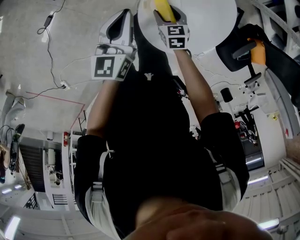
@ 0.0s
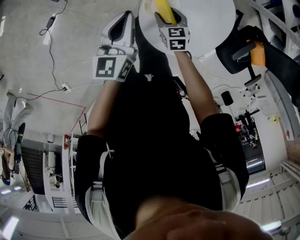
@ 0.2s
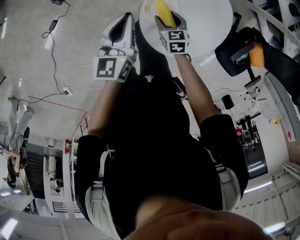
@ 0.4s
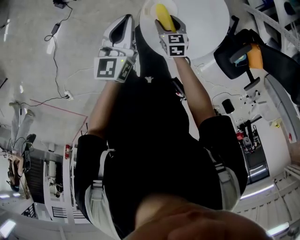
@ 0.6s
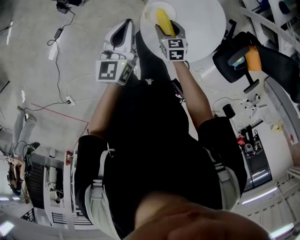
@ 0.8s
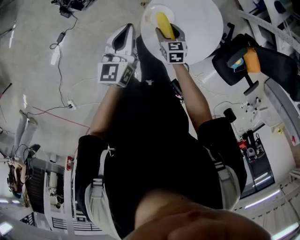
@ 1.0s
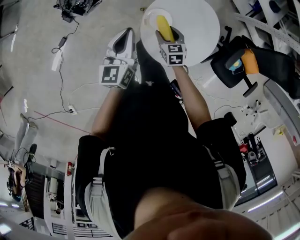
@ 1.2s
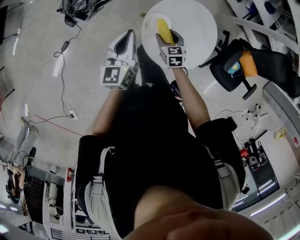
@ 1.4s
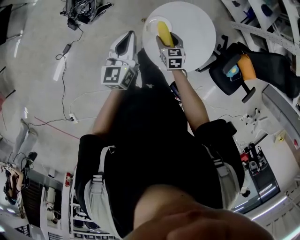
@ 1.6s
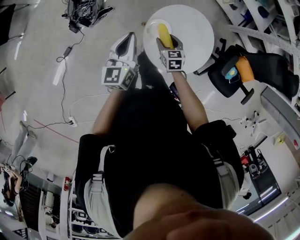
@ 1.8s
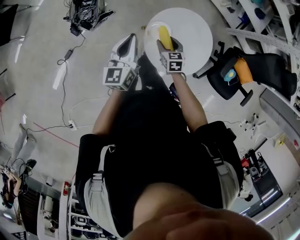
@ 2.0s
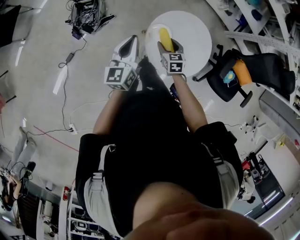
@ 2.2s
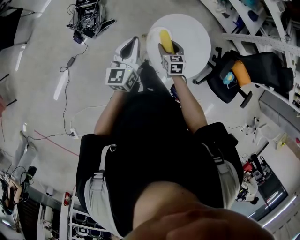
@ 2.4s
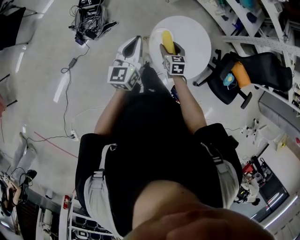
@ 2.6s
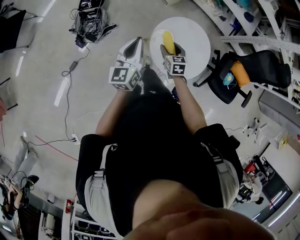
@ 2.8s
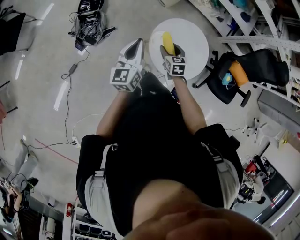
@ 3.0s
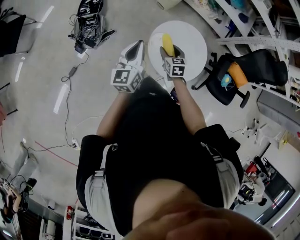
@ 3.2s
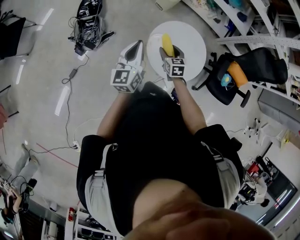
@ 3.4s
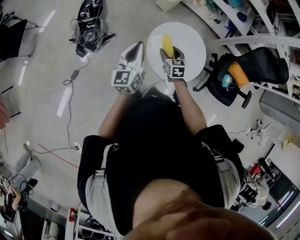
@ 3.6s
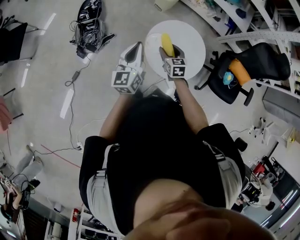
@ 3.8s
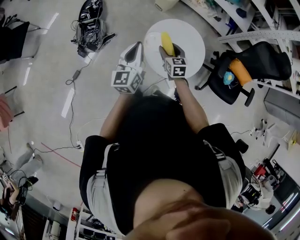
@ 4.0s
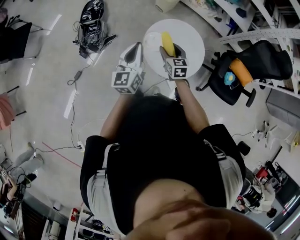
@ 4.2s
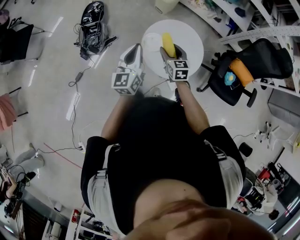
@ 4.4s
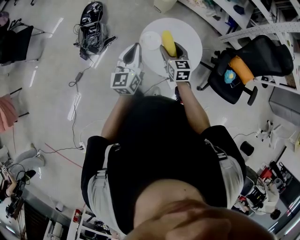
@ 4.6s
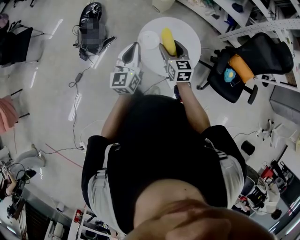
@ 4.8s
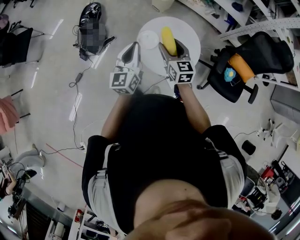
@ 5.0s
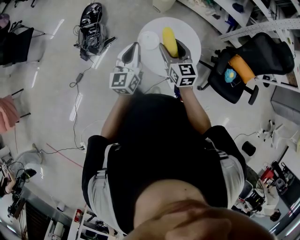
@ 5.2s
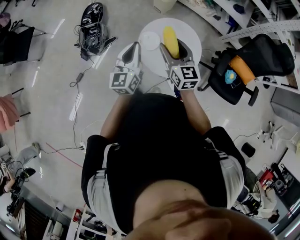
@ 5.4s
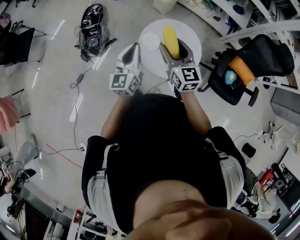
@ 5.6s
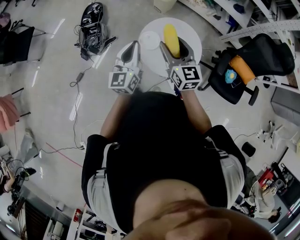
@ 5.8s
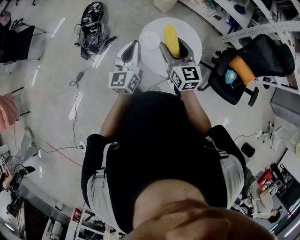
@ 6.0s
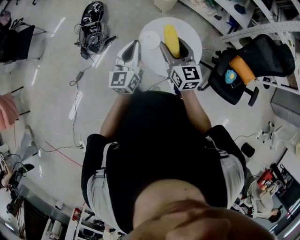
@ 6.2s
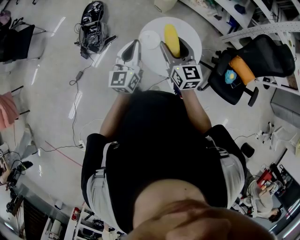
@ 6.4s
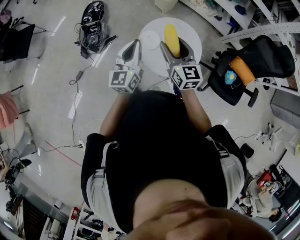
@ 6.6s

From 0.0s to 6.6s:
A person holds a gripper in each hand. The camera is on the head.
From 0.0s to 1.6s: The two grippers go about 15 cm upward.
From 1.6s to 3.2s: The left gripper goes some 10 cm upward and backward, while the right gripper heads upward, covering approximately 10 cm.
From 3.2s to 5.0s: The left gripper is displaced to the right and backward by roughly 15 cm. Meanwhile the right gripper is displaced upward, to the right and backward by roughly 20 cm, and rotates roughly 20 degrees.
From 5.0s to 6.6s: The right gripper heads upward, covering about 5 cm.

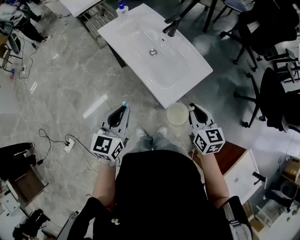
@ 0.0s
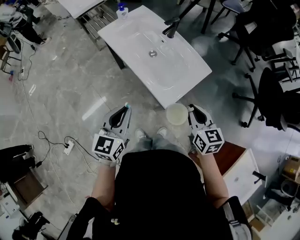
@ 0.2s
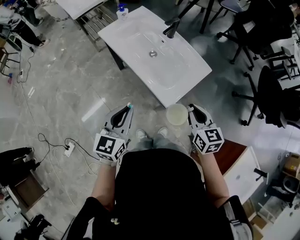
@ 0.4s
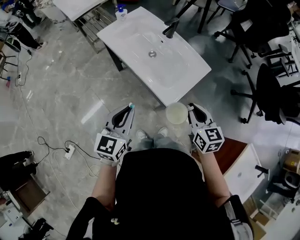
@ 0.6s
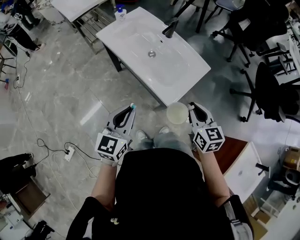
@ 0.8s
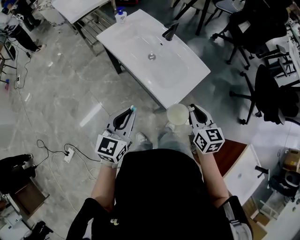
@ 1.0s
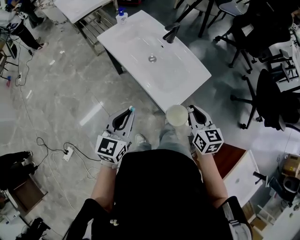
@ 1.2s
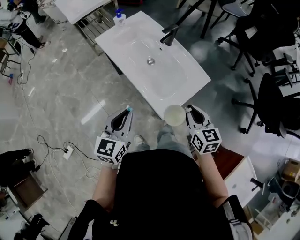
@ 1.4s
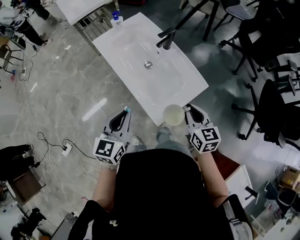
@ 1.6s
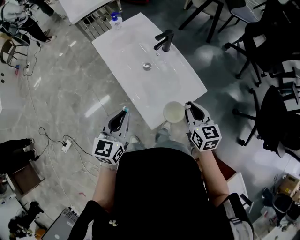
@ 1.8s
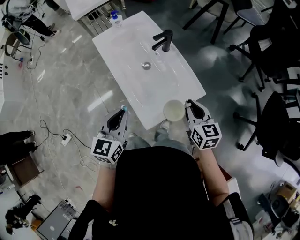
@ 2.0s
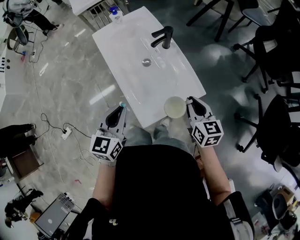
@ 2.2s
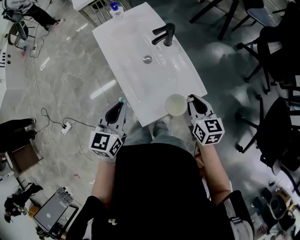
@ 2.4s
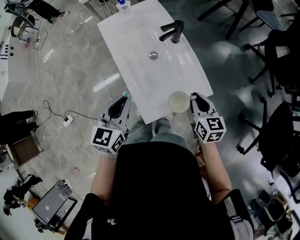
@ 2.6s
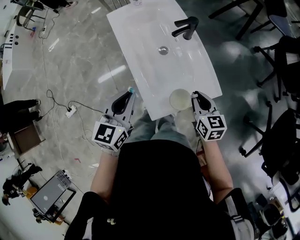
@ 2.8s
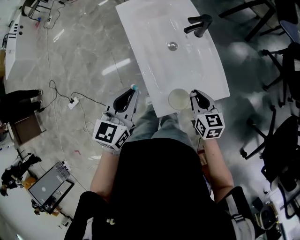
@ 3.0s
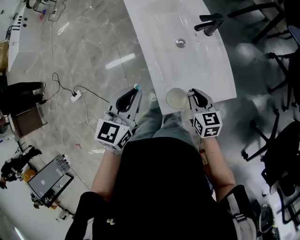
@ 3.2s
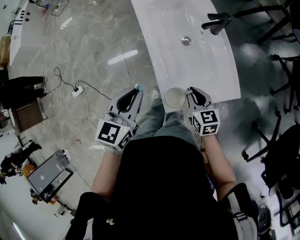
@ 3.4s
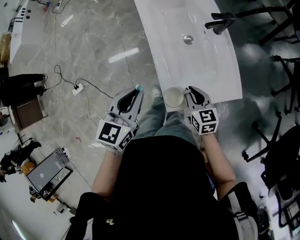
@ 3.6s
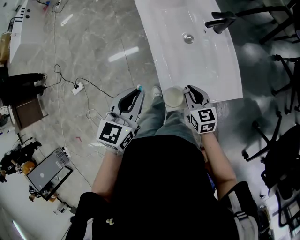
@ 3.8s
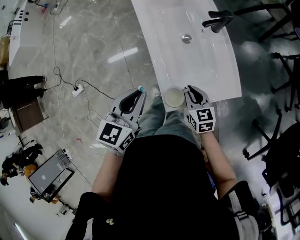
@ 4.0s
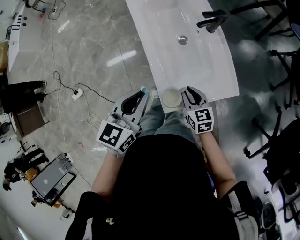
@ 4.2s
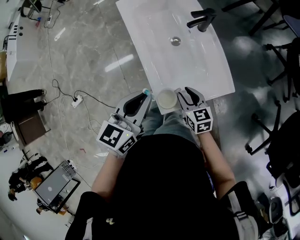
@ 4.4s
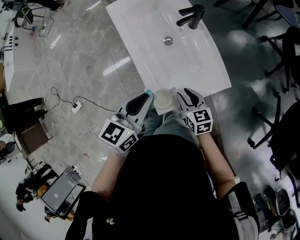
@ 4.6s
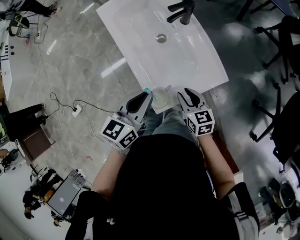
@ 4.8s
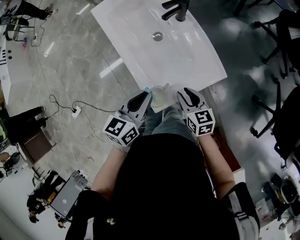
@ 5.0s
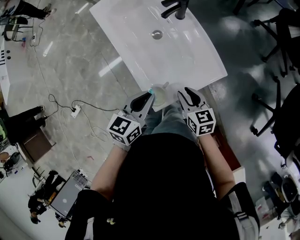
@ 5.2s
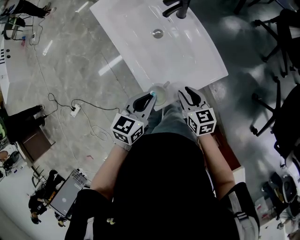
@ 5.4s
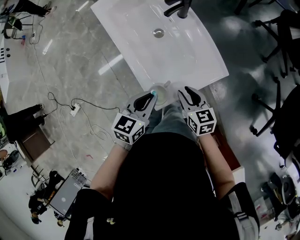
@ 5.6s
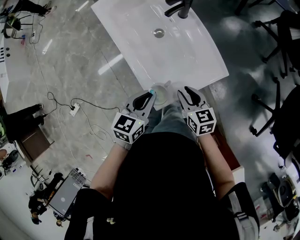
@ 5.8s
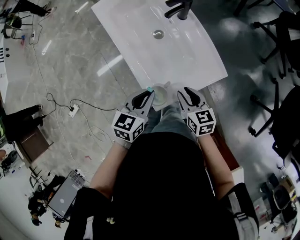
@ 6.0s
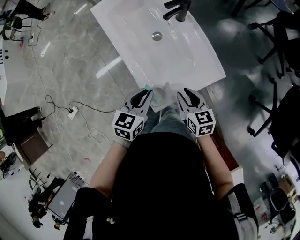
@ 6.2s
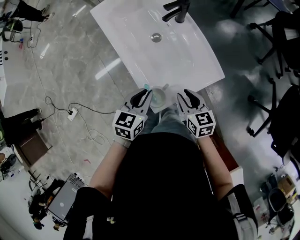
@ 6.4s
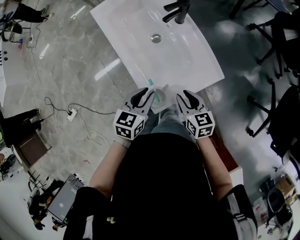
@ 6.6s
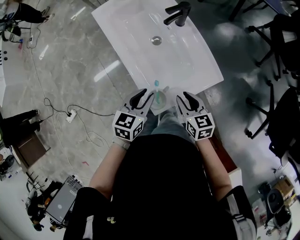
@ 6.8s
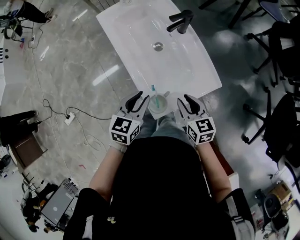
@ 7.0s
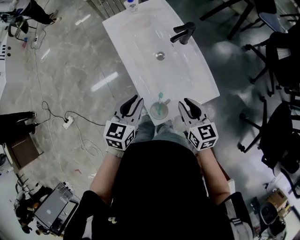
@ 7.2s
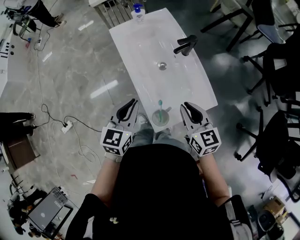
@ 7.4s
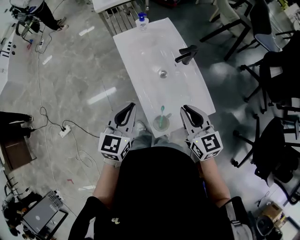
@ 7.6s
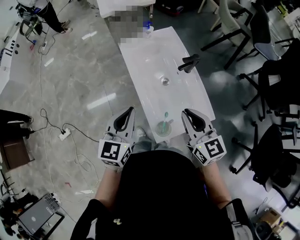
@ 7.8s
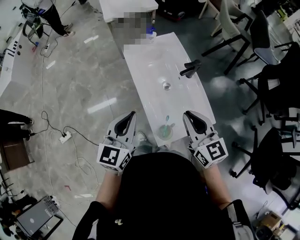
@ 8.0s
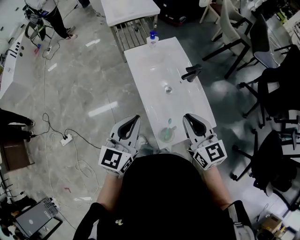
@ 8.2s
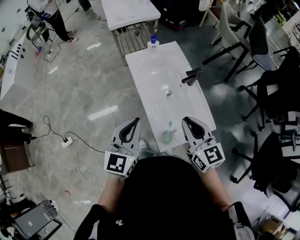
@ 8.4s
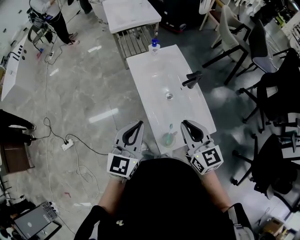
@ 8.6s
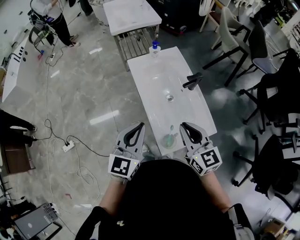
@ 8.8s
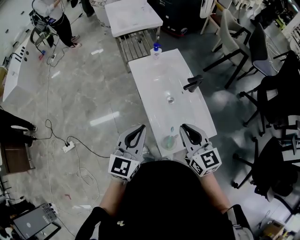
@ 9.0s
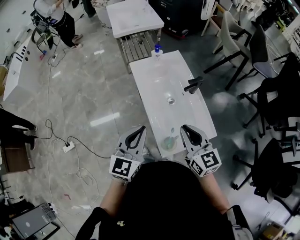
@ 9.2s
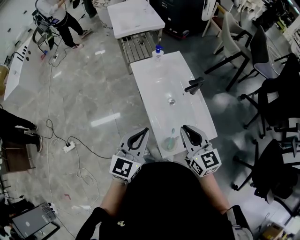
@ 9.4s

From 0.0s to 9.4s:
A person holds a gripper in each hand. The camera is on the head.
From 0.0s to 1.6s: Both grippers move forward, approximately 10 cm.
From 1.6s to 3.2s: The right gripper moves downward and forward, roughly 15 cm, and changes its angle by roughly 30 degrees.
From 3.2s to 4.8s: Both grippers travel together forward, roughly 15 cm. The right gripper opens its fingers, while the left gripper turns by roughly 20 degrees.
From 4.8s to 6.2s: The left gripper goes about 10 cm downward.
From 6.2s to 7.8s: The left gripper is displaced upward and to the left by some 20 cm, and rotates about 30 degrees. The right gripper heads upward, covering roughly 25 cm, turns by roughly 30 degrees, and closes its fingers.
From 7.8s to 9.4s: The grippers move only a little.

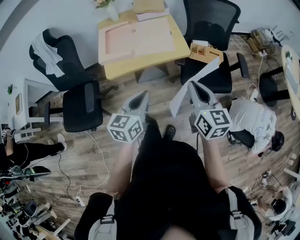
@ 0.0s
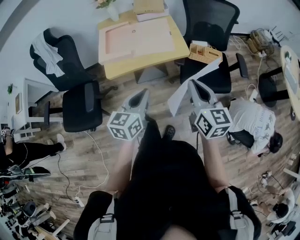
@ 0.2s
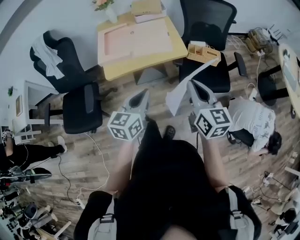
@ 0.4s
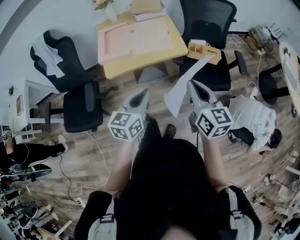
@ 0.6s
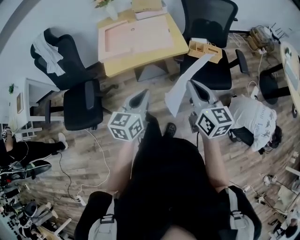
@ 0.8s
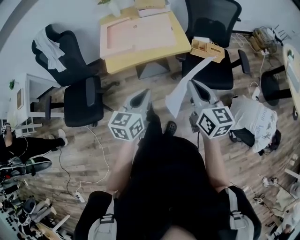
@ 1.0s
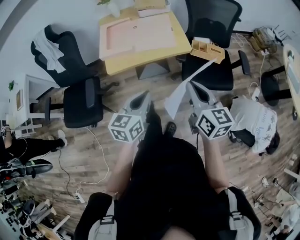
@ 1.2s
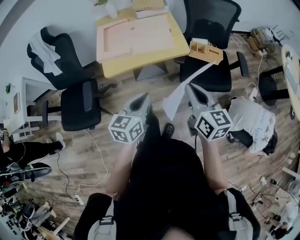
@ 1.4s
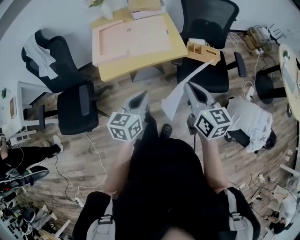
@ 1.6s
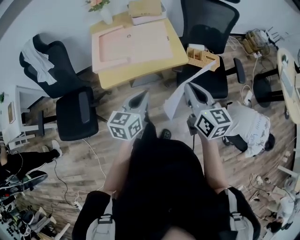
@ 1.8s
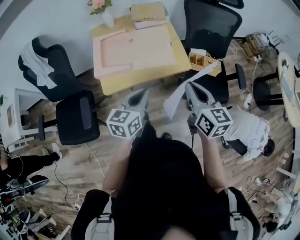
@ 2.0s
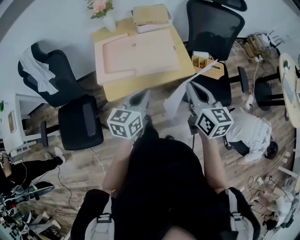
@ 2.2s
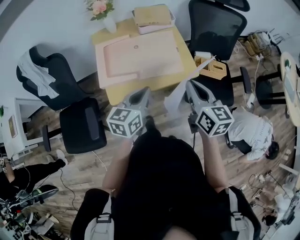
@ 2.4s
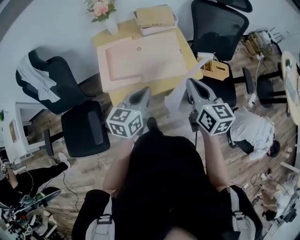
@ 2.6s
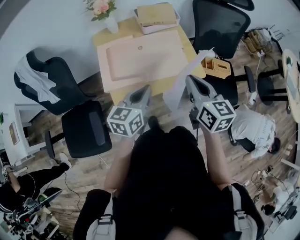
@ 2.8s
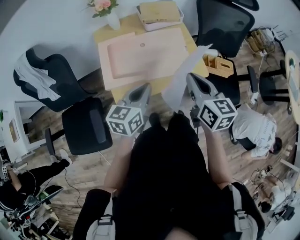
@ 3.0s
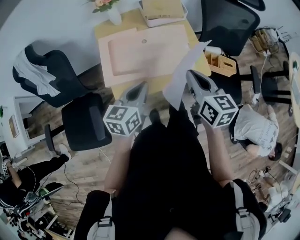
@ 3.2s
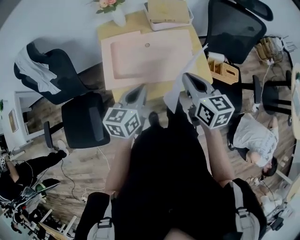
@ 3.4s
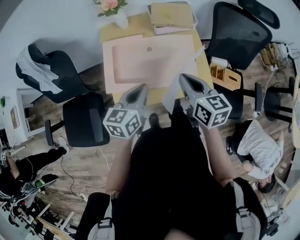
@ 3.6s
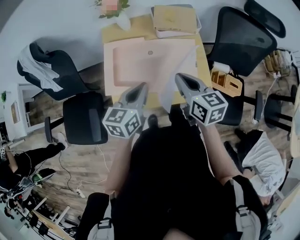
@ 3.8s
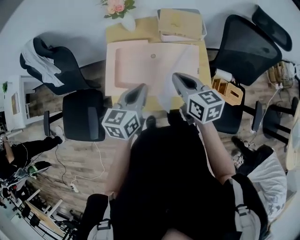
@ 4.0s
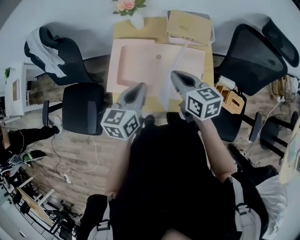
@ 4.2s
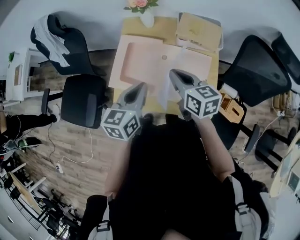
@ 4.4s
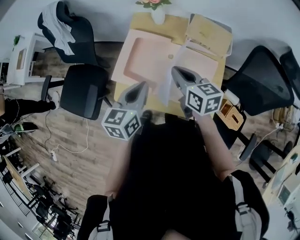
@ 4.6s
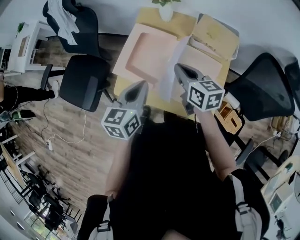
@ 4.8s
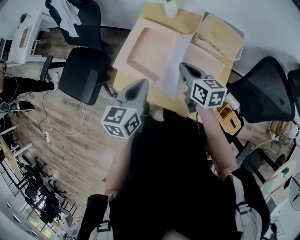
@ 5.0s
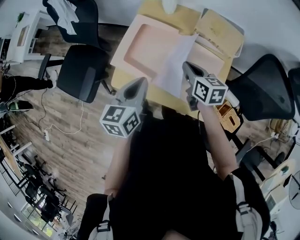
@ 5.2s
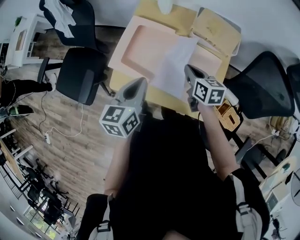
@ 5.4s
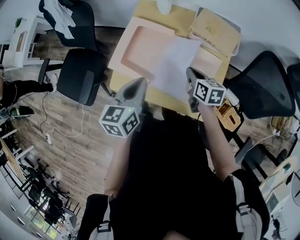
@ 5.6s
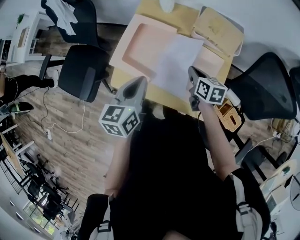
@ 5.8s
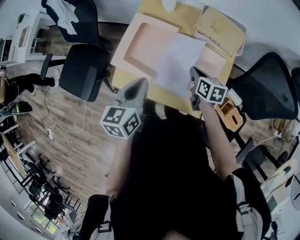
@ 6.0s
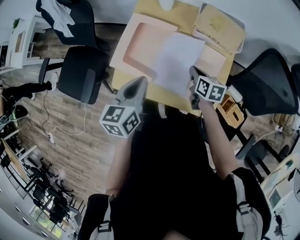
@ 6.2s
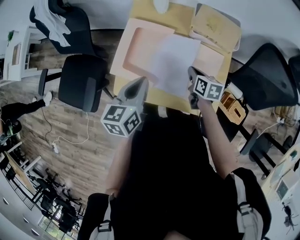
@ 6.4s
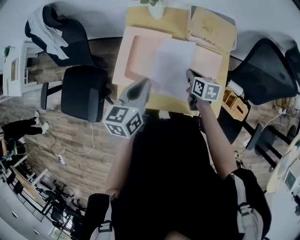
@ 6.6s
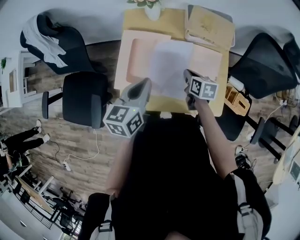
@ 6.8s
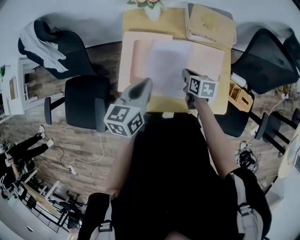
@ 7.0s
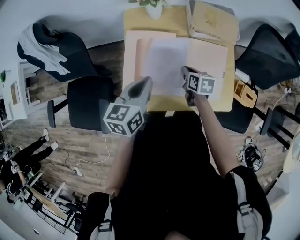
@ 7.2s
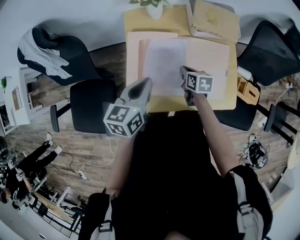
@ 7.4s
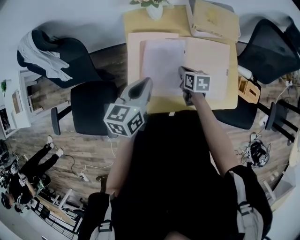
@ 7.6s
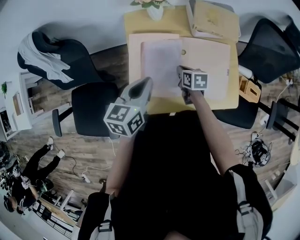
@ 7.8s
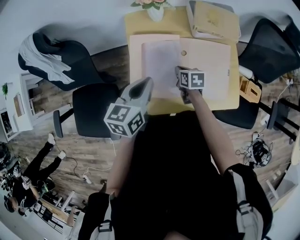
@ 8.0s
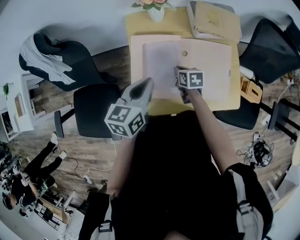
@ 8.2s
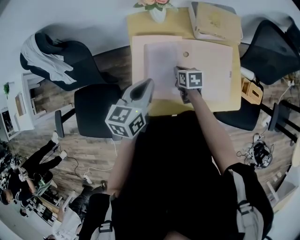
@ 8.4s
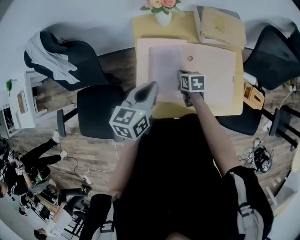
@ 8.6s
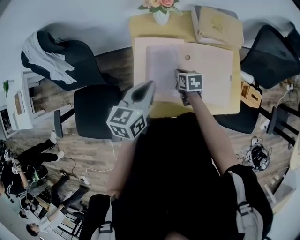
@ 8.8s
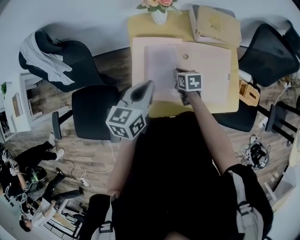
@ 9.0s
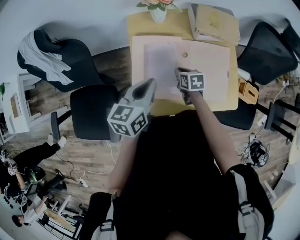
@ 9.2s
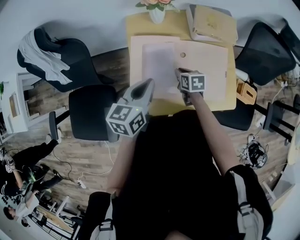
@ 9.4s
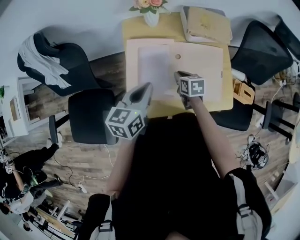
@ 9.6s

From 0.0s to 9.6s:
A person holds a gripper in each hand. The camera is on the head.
From 0.0s to 1.6s: The grippers make only small movements.
From 1.6s to 3.2s: The grippers both shift forward and to the left by about 30 cm.
From 3.2s to 4.8s: The right gripper ends up some 25 cm from where it was, and turns by approximately 40 degrees, while the left gripper changes place by approximately 10 cm, and rotates about 40 degrees.
From 4.8s to 6.4s: The right gripper heads downward and to the right, covering about 15 cm, and changes its angle by some 30 degrees.
From 6.4s to 8.0s: The right gripper is displaced to the left and downward by approximately 15 cm; the left gripper moves to the left and forward, about 10 cm, and rotates about 20 degrees.
From 8.0s to 9.6s: The grippers make only small movements.
